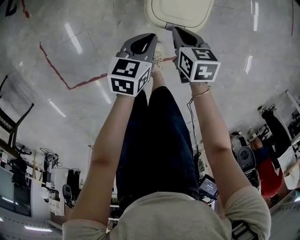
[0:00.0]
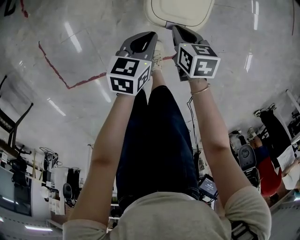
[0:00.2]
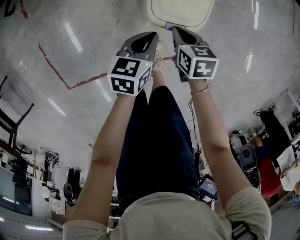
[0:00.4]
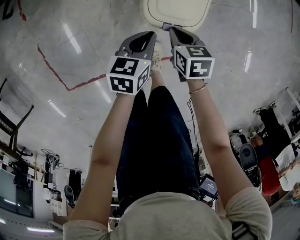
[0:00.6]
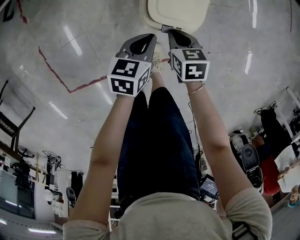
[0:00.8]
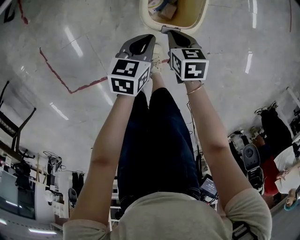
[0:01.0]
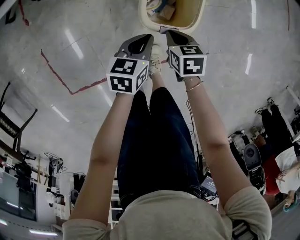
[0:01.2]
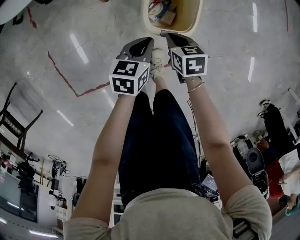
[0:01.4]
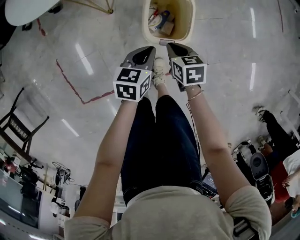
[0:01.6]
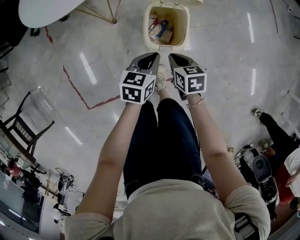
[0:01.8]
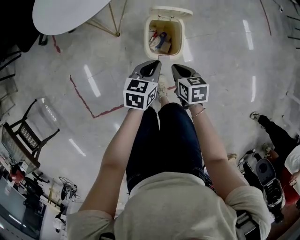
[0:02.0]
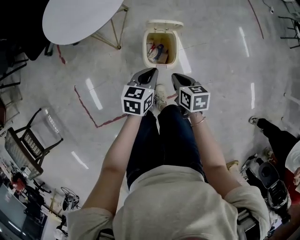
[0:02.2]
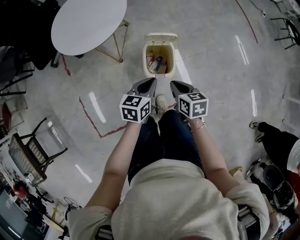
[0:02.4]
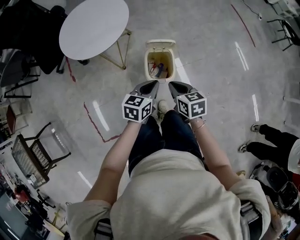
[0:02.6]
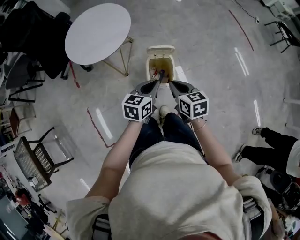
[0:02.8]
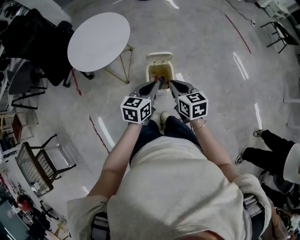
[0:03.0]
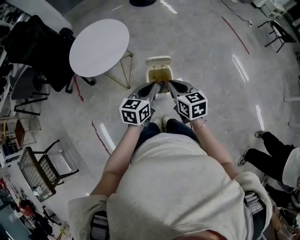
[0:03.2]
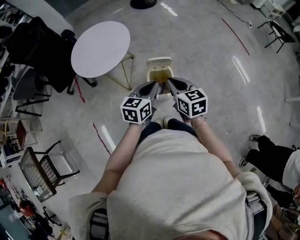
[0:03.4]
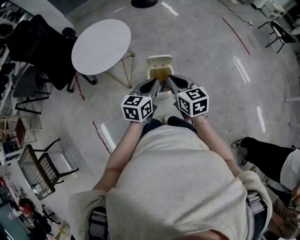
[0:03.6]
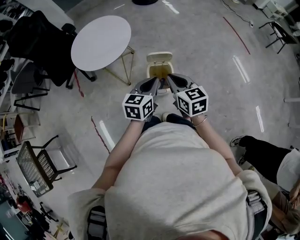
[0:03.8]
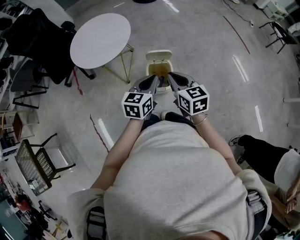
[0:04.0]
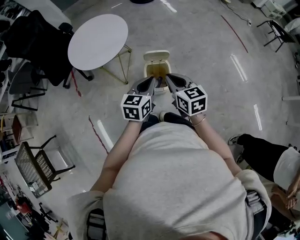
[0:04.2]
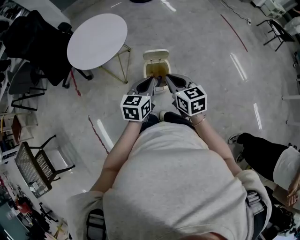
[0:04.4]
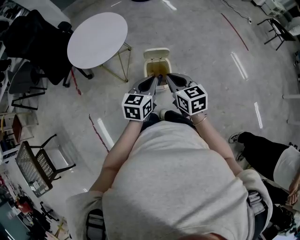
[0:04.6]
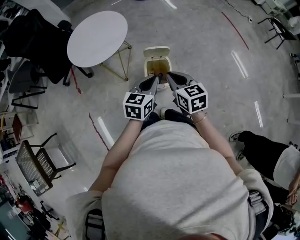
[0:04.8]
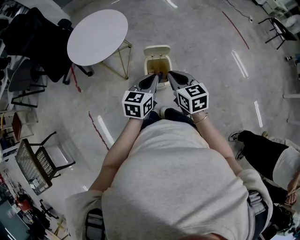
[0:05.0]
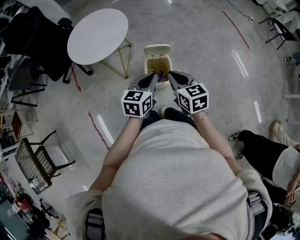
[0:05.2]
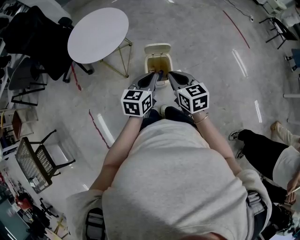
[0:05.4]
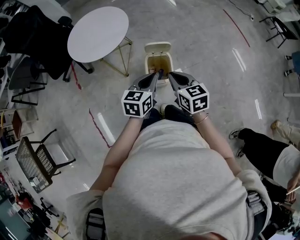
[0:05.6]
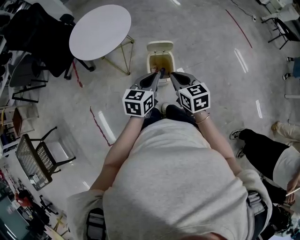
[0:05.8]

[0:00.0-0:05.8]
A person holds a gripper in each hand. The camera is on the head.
0:00.0 to 0:01.4: There are only small adjustments of the grippers.
0:01.4 to 0:02.8: Both grippers move upward, approximately 35 cm. The right gripper changes its angle by roughly 30 degrees; the left gripper swivels roughly 20 degrees.
0:02.8 to 0:04.4: The grippers both shift upward by roughly 5 cm.
0:04.4 to 0:05.8: The grippers move only a little.

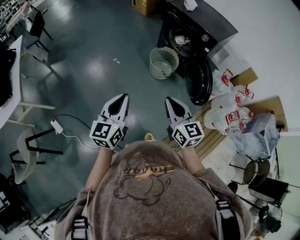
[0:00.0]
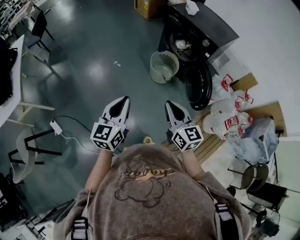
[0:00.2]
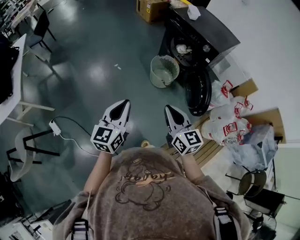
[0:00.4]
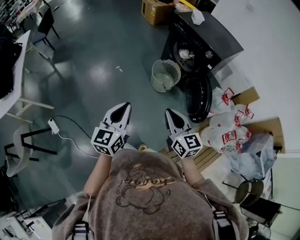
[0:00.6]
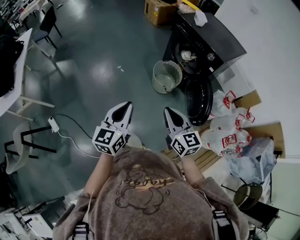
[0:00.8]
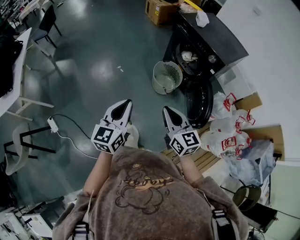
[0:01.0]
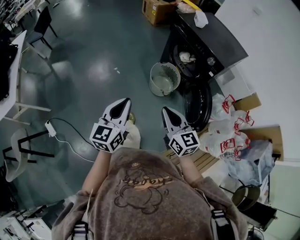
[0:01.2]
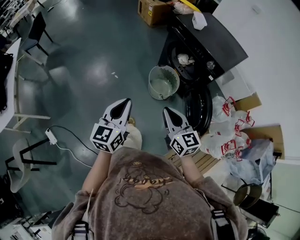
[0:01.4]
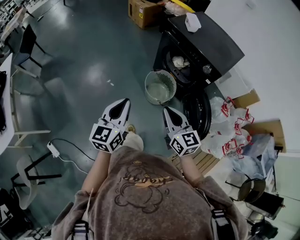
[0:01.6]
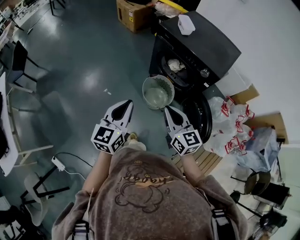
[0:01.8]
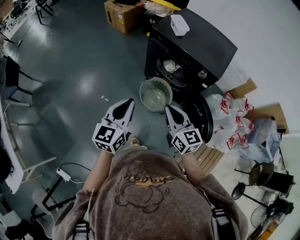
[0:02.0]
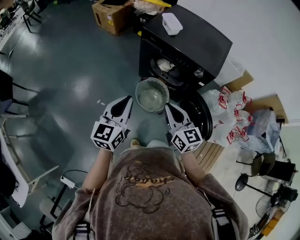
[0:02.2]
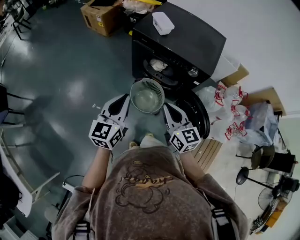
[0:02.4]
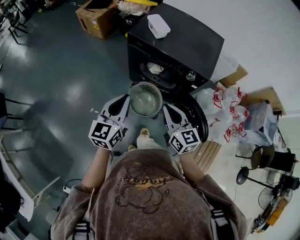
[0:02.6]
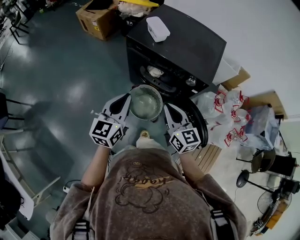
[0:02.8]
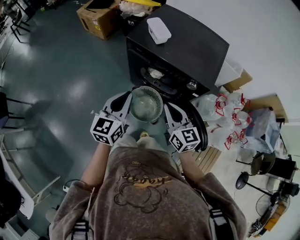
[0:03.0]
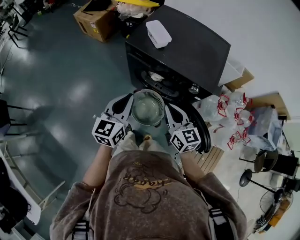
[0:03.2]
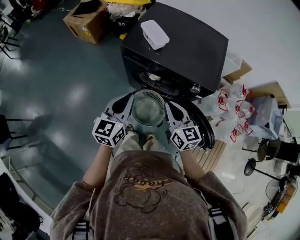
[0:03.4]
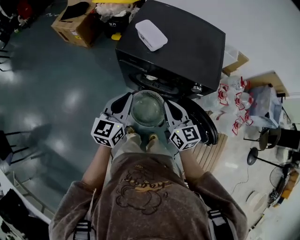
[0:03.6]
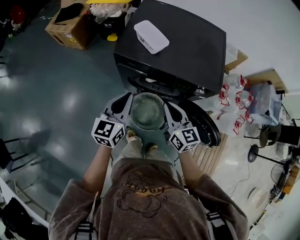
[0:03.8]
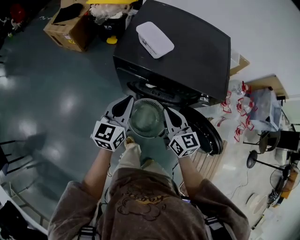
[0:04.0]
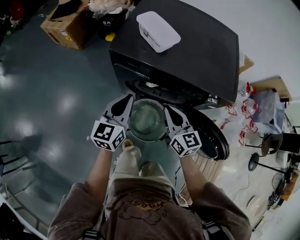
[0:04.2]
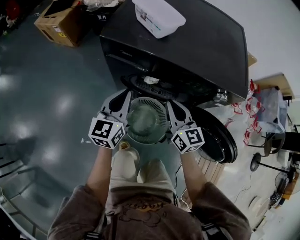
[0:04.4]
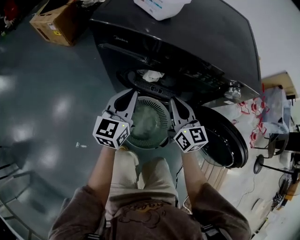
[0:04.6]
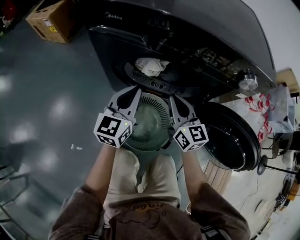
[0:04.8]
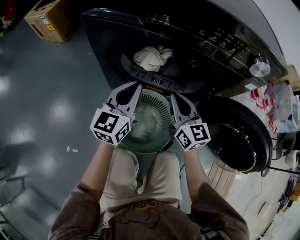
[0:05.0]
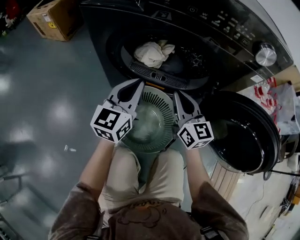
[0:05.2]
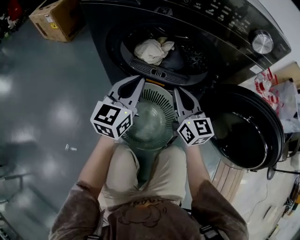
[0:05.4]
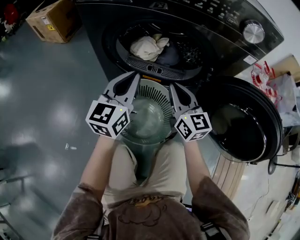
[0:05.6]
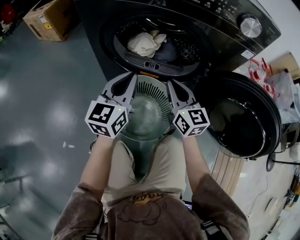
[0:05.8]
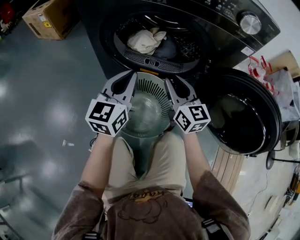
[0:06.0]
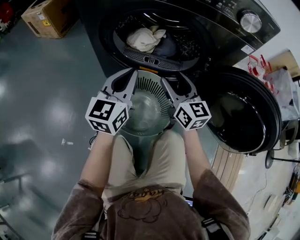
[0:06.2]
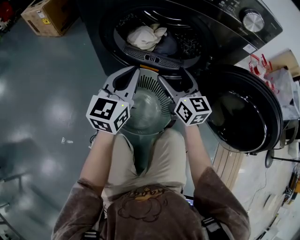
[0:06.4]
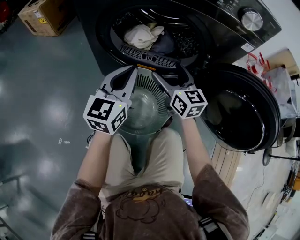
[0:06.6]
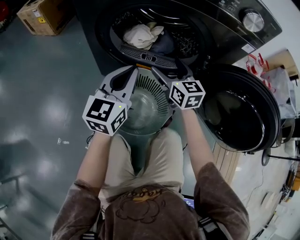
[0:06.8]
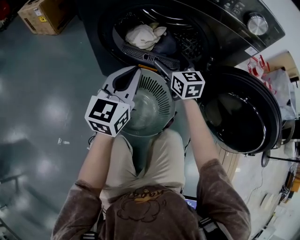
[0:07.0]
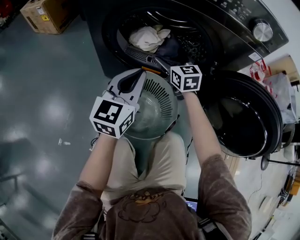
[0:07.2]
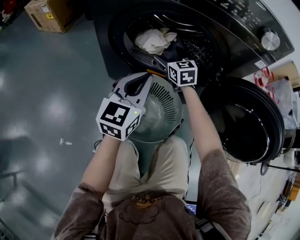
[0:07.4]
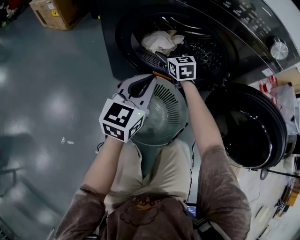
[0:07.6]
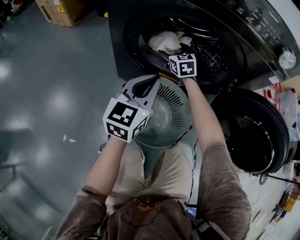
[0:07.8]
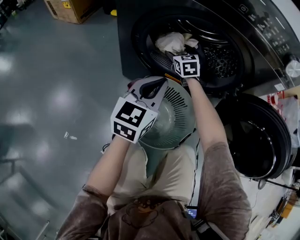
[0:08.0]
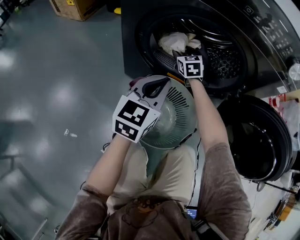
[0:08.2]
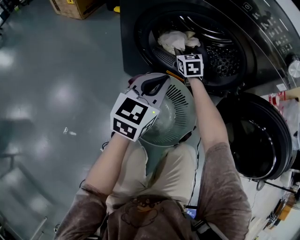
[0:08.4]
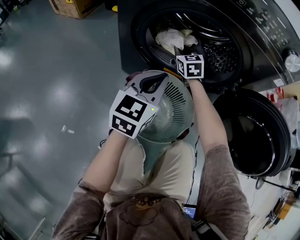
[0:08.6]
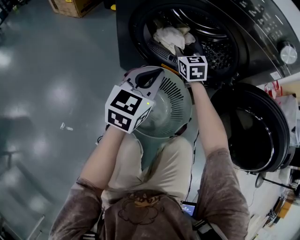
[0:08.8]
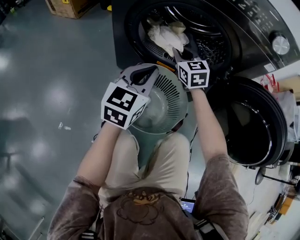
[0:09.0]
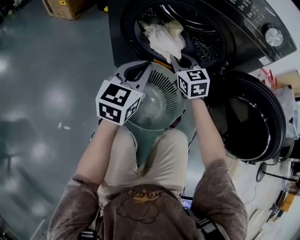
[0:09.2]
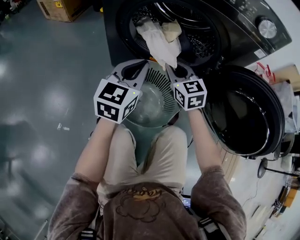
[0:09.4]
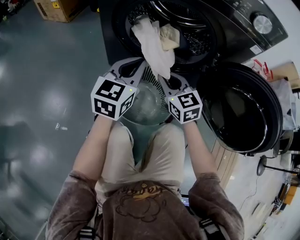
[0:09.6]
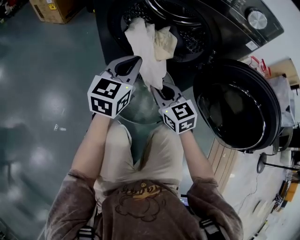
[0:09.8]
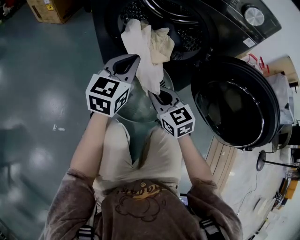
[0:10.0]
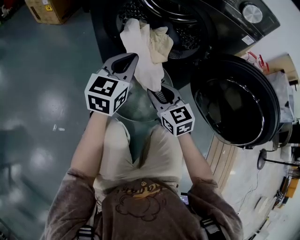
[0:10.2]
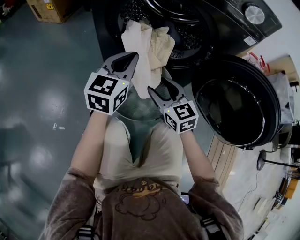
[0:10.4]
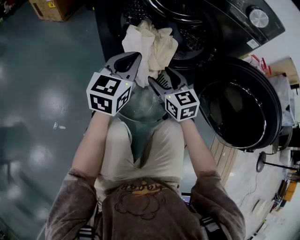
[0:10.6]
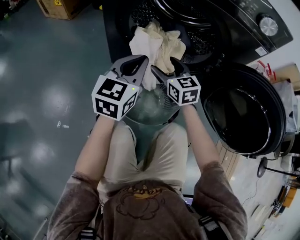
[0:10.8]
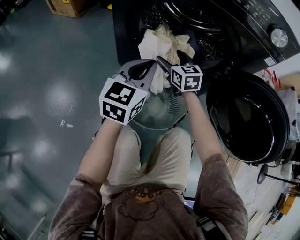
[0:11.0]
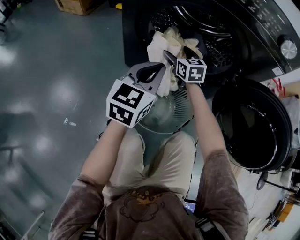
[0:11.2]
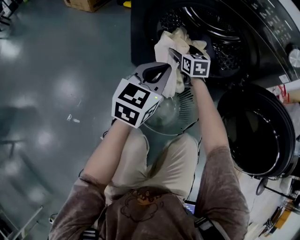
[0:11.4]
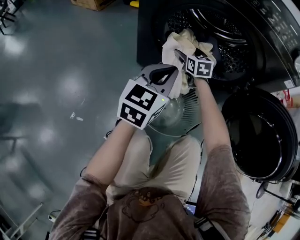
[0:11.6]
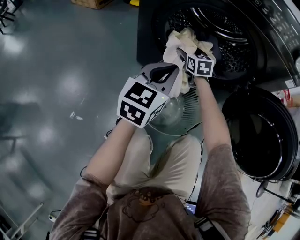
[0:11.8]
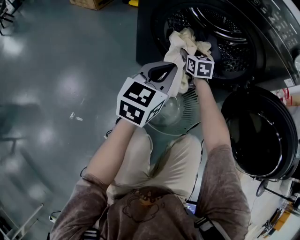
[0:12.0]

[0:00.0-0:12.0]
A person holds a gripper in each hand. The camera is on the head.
0:00.0 to 0:01.6: Both grippers move forward, about 25 cm.
0:01.6 to 0:03.0: The grippers both shift forward by some 30 cm. The right gripper changes its angle by roughly 20 degrees; the left gripper turns by approximately 20 degrees.
0:03.0 to 0:04.4: The grippers both shift downward and forward by roughly 30 cm.
0:04.4 to 0:06.0: Both grippers move downward, approximately 25 cm.
0:06.0 to 0:07.6: The right gripper shifts roughly 20 cm forward and downward, turns by approximately 20 degrees, and opens its fingers.
0:07.6 to 0:09.0: The right gripper moves backward, about 5 cm, and closes its fingers.
0:09.0 to 0:10.4: The right gripper shifts some 20 cm backward, and opens up.
0:10.4 to 0:12.0: The right gripper shifts approximately 25 cm forward, and opens, then closes again.

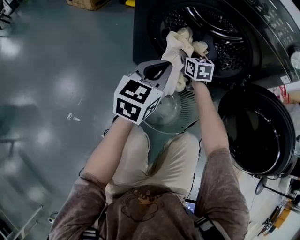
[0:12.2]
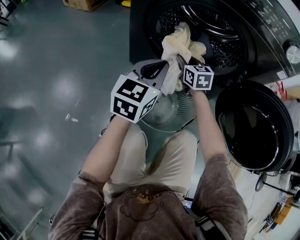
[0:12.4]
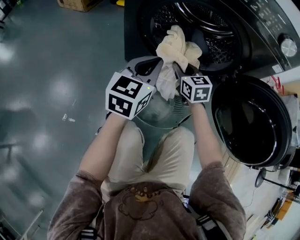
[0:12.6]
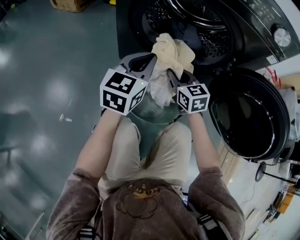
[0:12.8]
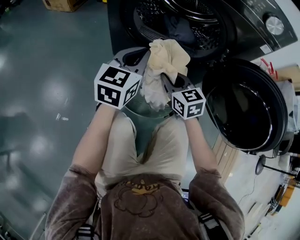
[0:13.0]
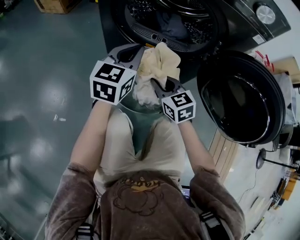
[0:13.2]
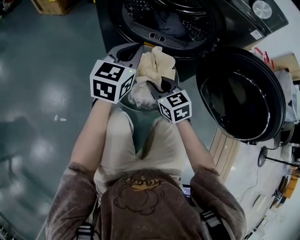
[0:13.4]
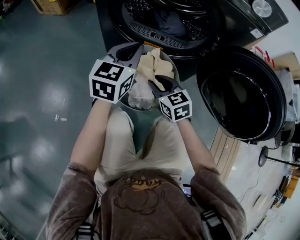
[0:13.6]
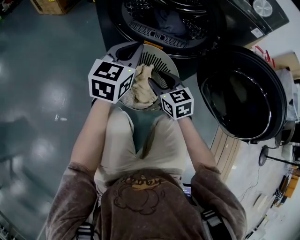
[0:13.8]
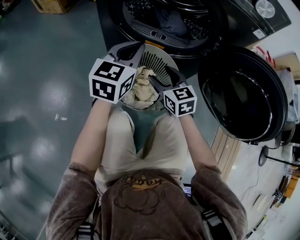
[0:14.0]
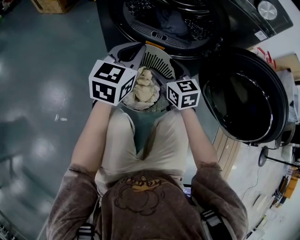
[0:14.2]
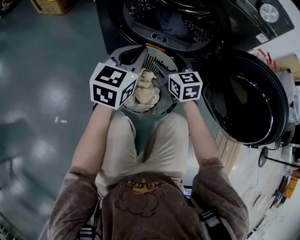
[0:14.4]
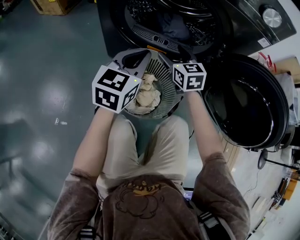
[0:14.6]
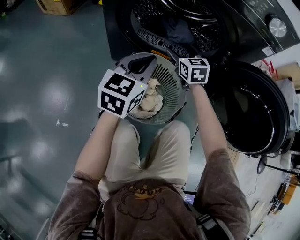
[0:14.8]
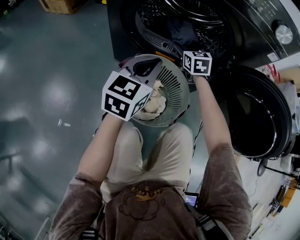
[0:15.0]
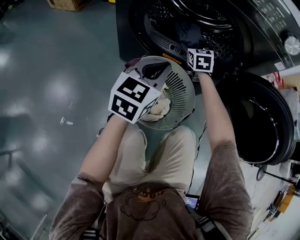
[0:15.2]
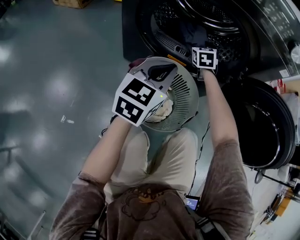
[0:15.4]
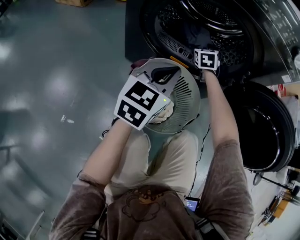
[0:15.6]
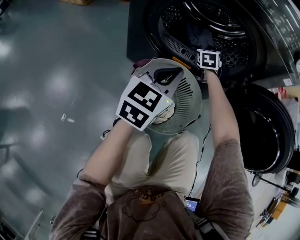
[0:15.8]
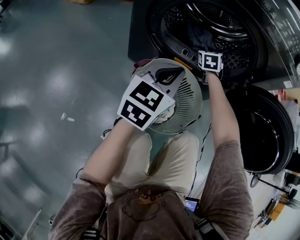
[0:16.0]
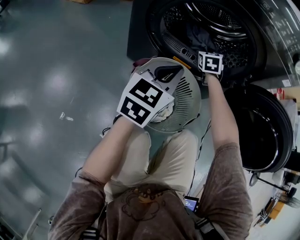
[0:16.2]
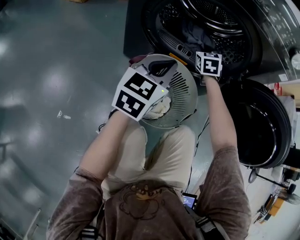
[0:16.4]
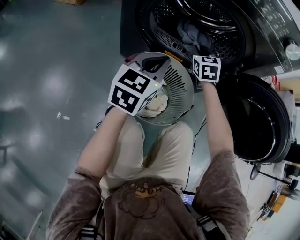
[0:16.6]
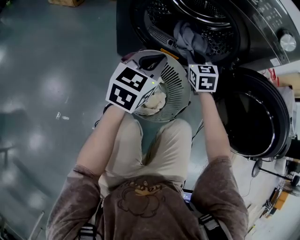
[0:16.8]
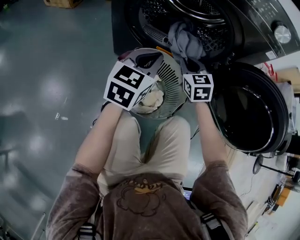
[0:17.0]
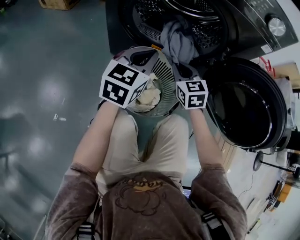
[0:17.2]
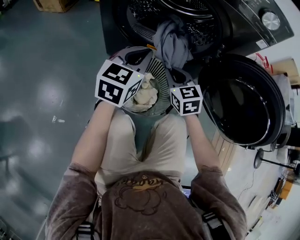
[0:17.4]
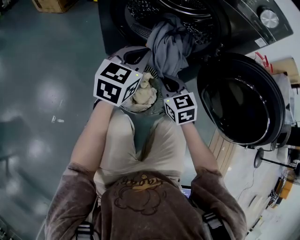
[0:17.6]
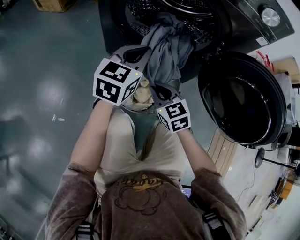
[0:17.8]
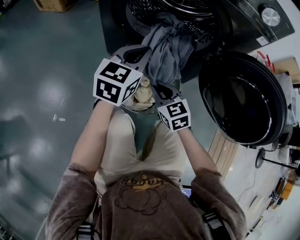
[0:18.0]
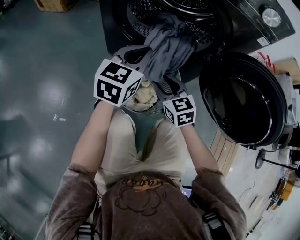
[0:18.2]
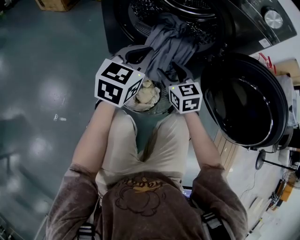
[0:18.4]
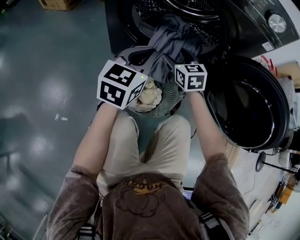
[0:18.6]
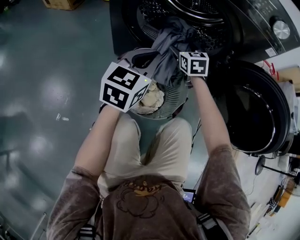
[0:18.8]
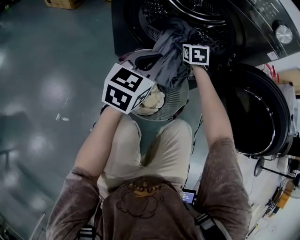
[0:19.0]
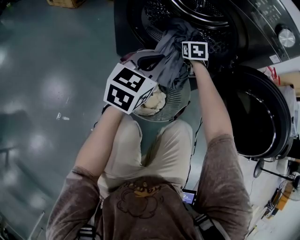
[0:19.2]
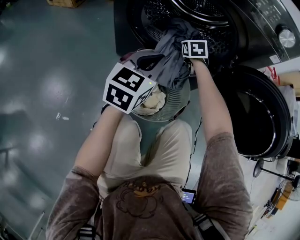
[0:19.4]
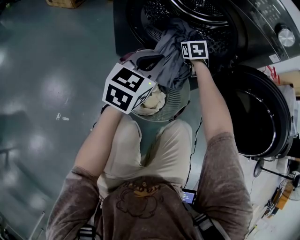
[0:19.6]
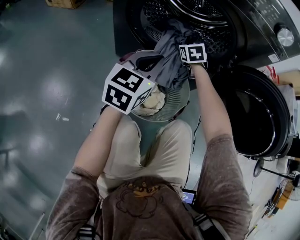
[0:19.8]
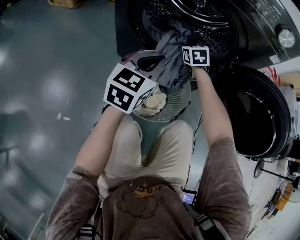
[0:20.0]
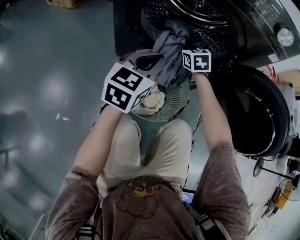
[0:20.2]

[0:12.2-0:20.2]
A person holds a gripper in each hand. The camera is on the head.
0:12.2 to 0:13.8: The right gripper heads backward, covering roughly 25 cm.
0:13.8 to 0:15.4: The right gripper moves forward, approximately 30 cm, and turns by about 30 degrees.
0:15.4 to 0:17.0: The right gripper shifts roughly 15 cm backward, and closes.
0:17.0 to 0:18.6: The right gripper goes backward and returns, approximately 15 cm each way, and opens its fingers.
0:18.6 to 0:20.2: The right gripper heads forward, covering some 10 cm, and closes its fingers.
